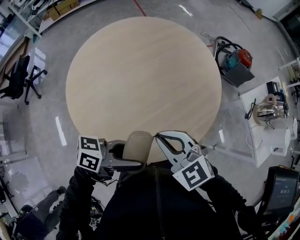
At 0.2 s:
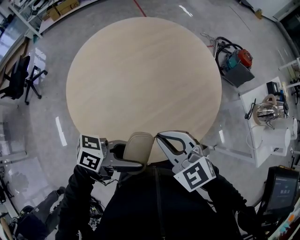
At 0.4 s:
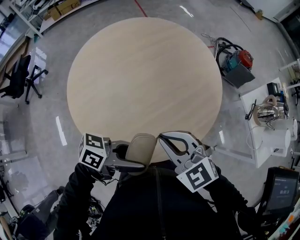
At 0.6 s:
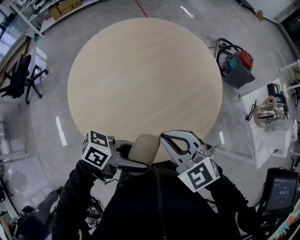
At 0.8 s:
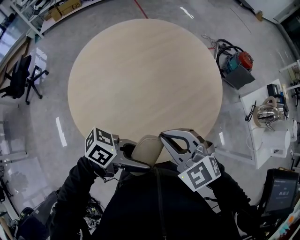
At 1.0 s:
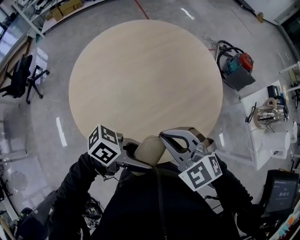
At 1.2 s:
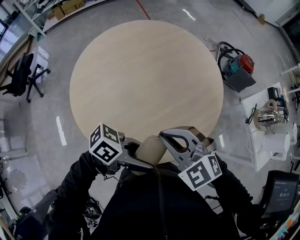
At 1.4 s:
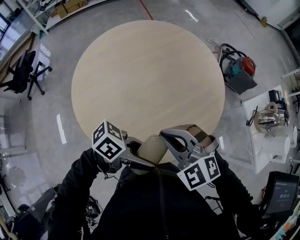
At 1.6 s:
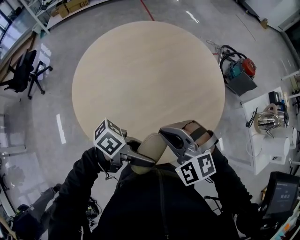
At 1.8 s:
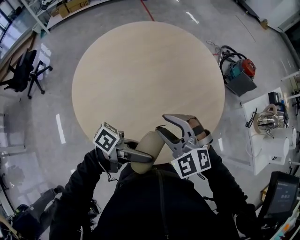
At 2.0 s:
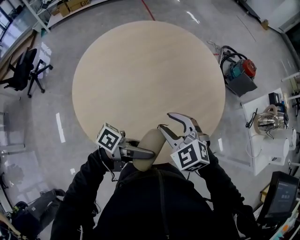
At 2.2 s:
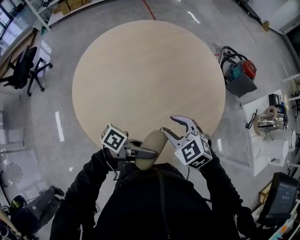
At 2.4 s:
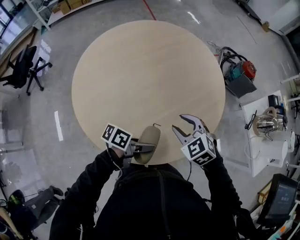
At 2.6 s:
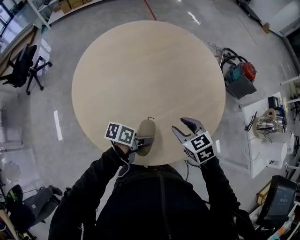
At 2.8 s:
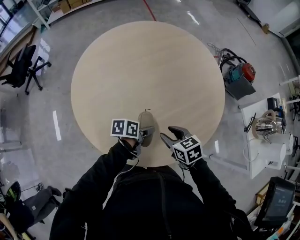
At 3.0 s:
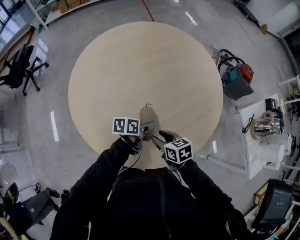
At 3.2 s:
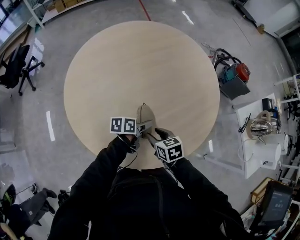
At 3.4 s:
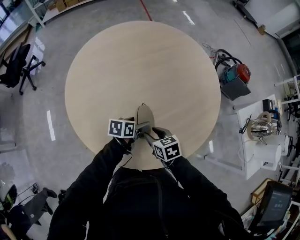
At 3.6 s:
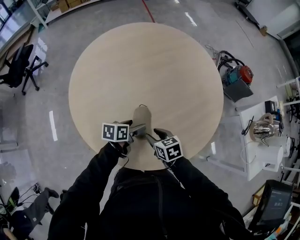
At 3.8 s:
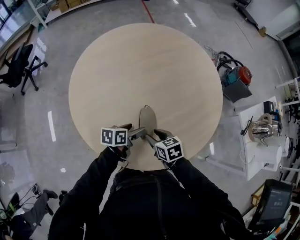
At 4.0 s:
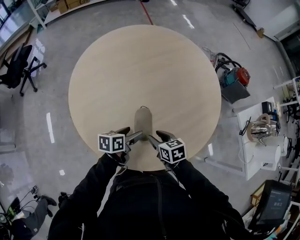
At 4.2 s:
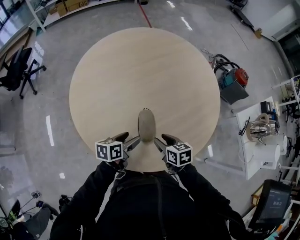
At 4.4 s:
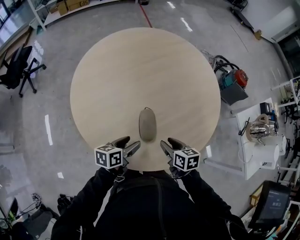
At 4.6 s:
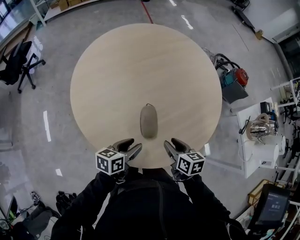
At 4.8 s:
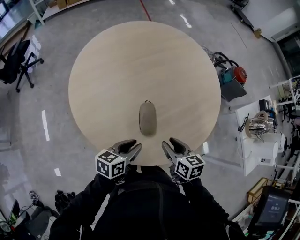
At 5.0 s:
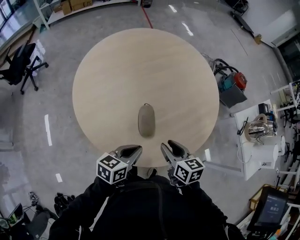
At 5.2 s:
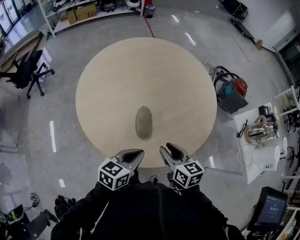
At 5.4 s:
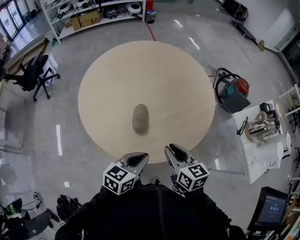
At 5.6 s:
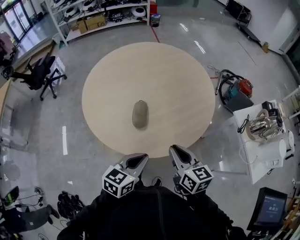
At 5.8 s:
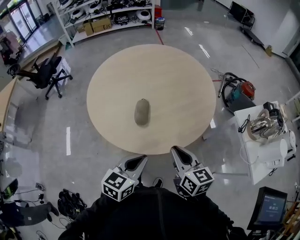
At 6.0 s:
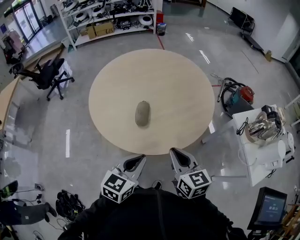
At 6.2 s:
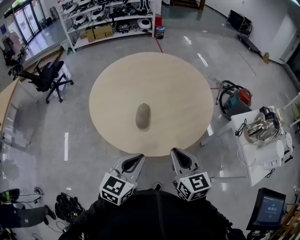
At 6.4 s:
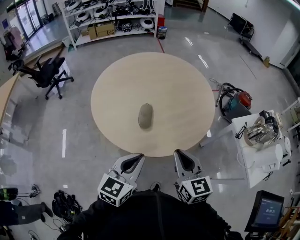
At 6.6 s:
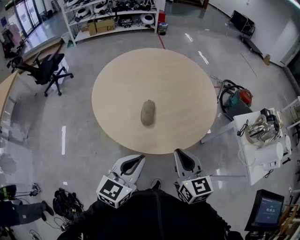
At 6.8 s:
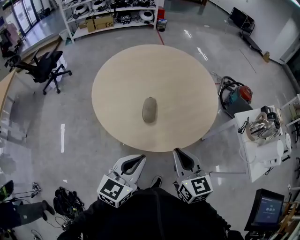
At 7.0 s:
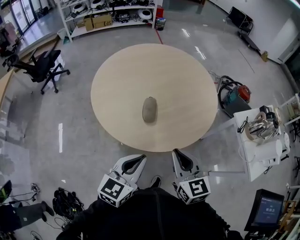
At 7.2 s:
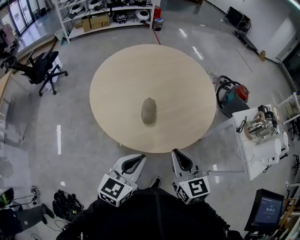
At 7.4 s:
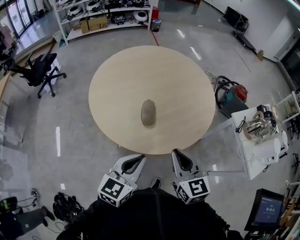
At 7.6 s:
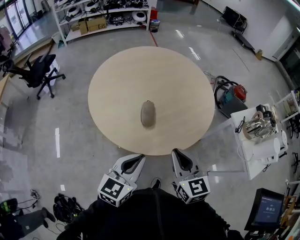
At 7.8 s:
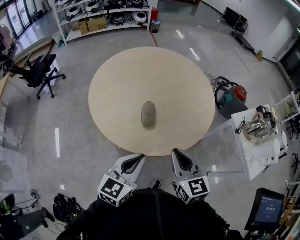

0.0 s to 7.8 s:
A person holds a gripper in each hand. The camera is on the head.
0.0 to 1.6 s: The right gripper turns by about 40 degrees.
1.6 to 3.2 s: Both grippers move downward, roughly 20 cm. The right gripper rolls clockwise, seen from behind, by some 80 degrees, and opens up. Meanwhile the left gripper turns by roughly 50 degrees.
3.2 to 4.6 s: The left gripper heads backward, to the left and upward, covering roughly 15 cm, while the right gripper ends up roughly 5 cm from where it was.
4.6 to 6.2 s: Both grippers travel together upward, backward and to the right, some 30 cm. The left gripper changes its angle by some 40 degrees, and closes up; the right gripper changes its angle by about 40 degrees, and closes up.
6.2 to 7.8 s: Both grippers travel together to the left, roughly 5 cm.

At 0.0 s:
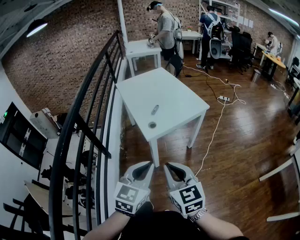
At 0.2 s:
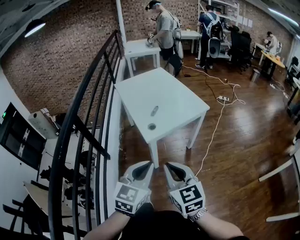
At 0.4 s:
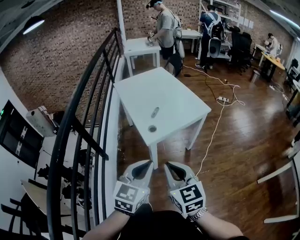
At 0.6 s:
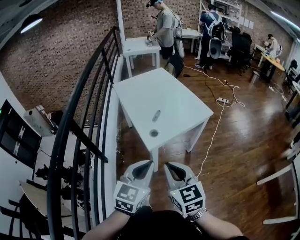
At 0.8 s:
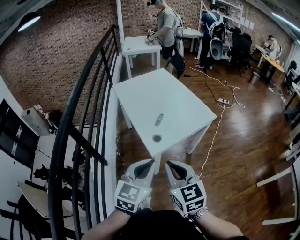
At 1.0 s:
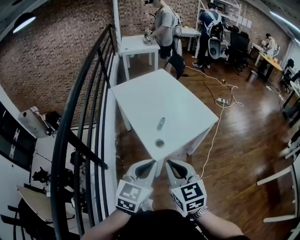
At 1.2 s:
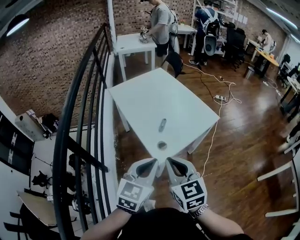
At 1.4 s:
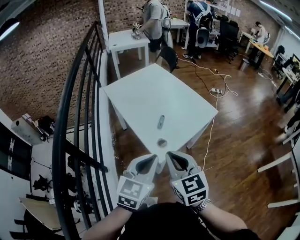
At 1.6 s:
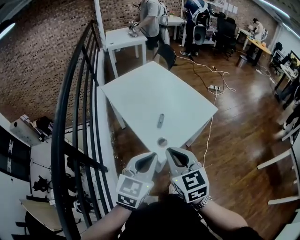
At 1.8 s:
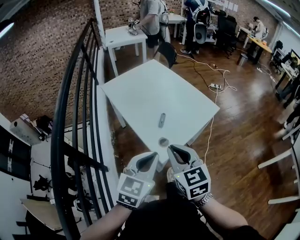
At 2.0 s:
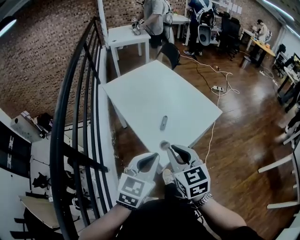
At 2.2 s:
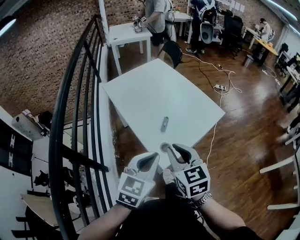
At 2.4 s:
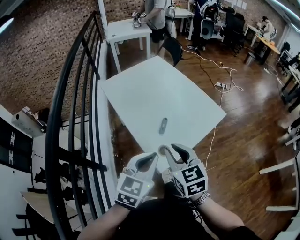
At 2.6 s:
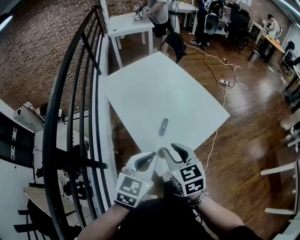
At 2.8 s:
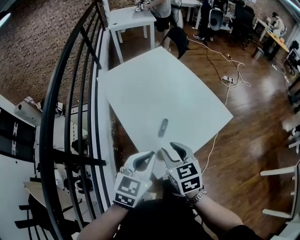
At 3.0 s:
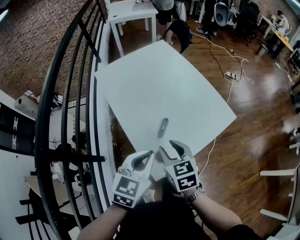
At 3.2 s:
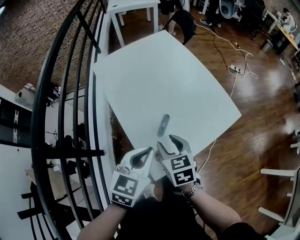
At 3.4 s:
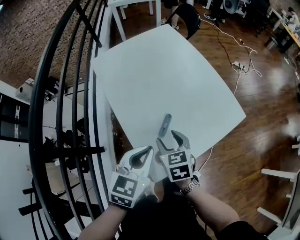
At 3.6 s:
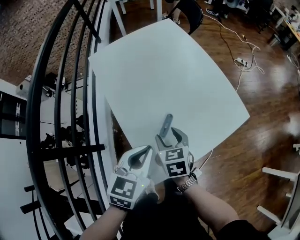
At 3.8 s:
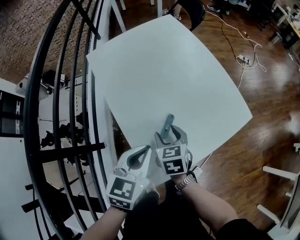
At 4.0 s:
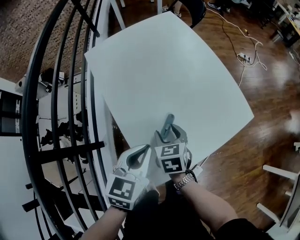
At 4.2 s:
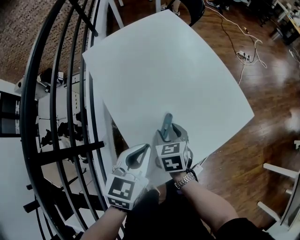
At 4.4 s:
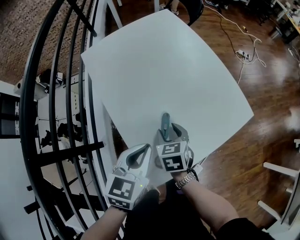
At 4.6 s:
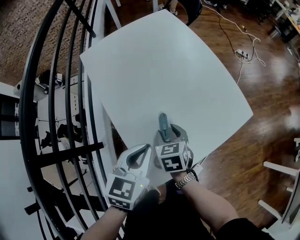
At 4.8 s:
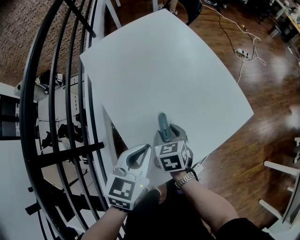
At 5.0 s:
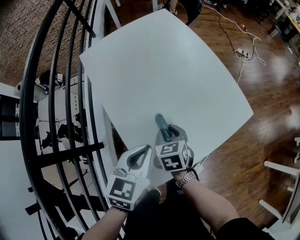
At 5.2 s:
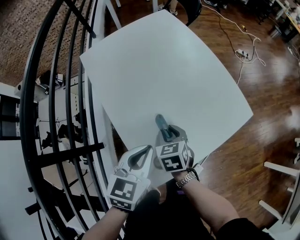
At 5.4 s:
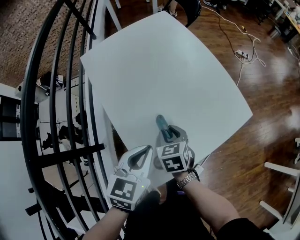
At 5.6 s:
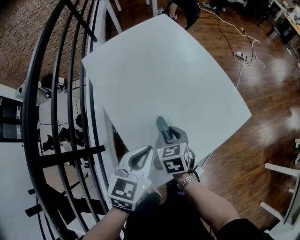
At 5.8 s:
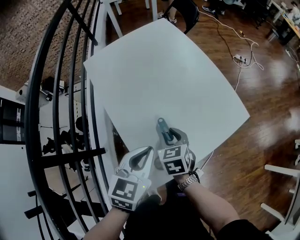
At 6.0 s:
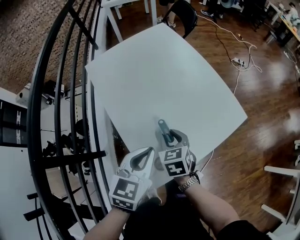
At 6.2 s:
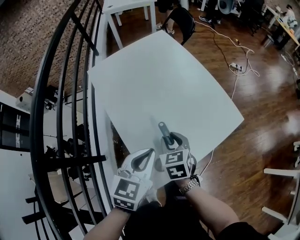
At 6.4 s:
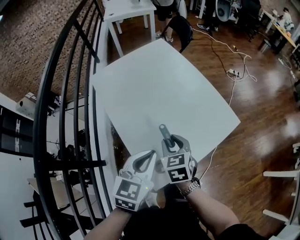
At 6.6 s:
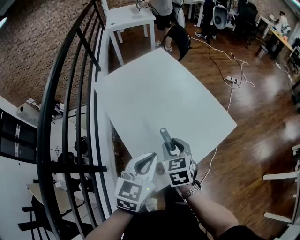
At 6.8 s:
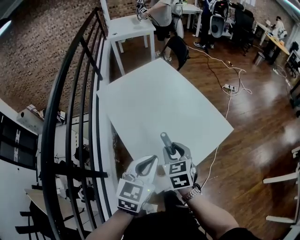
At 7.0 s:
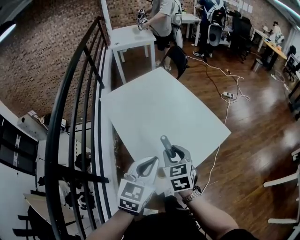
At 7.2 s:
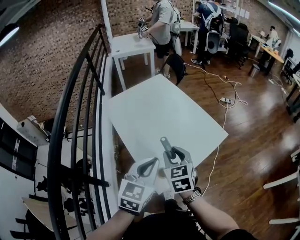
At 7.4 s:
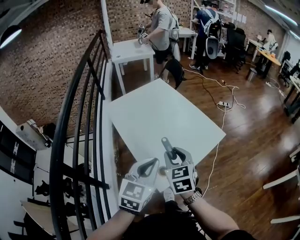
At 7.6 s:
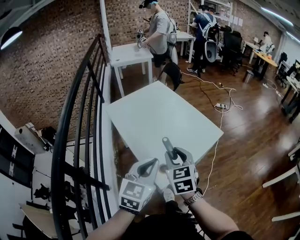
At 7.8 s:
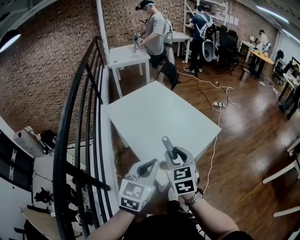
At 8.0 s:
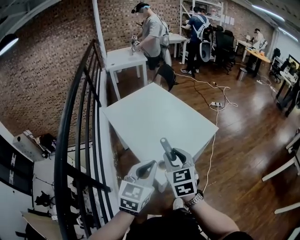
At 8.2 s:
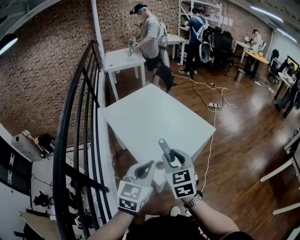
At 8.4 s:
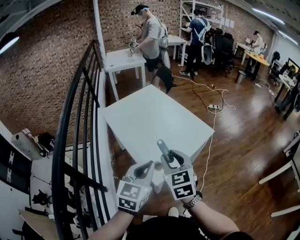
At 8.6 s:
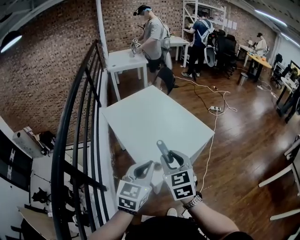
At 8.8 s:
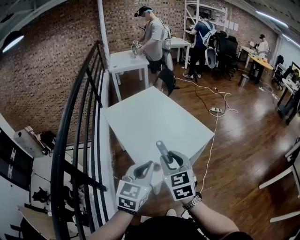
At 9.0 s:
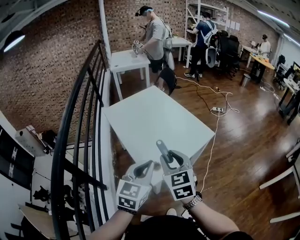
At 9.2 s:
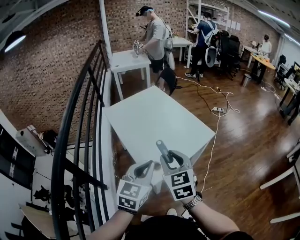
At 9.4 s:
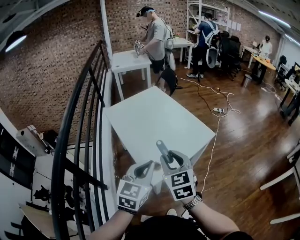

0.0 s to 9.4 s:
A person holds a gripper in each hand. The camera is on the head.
0.0 to 1.6 s: The grippers both shift forward and to the left by about 30 cm.
1.6 to 3.2 s: The two grippers go approximately 25 cm forward and downward. The right gripper rotates some 20 degrees, and opens its fingers.
3.2 to 4.8 s: The right gripper is displaced downward and forward by approximately 15 cm; the left gripper heads downward, covering about 5 cm.
4.8 to 6.2 s: The right gripper is displaced upward by approximately 5 cm.
6.2 to 7.8 s: The left gripper moves backward and upward, approximately 20 cm. Meanwhile the right gripper travels upward and backward by some 25 cm, and rotates roughly 20 degrees.
7.8 to 9.4 s: The right gripper ends up roughly 5 cm from where it was.

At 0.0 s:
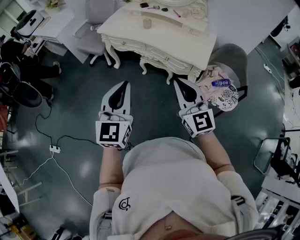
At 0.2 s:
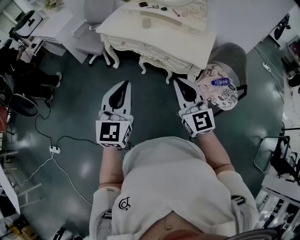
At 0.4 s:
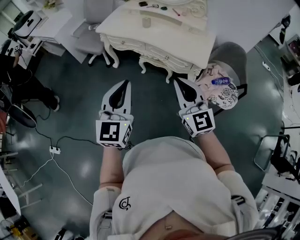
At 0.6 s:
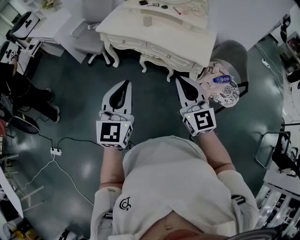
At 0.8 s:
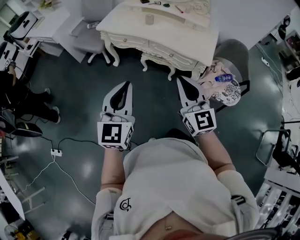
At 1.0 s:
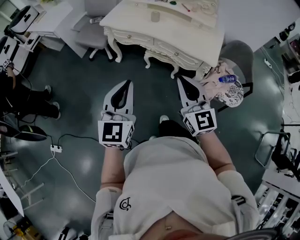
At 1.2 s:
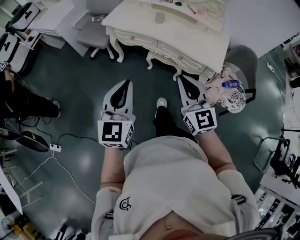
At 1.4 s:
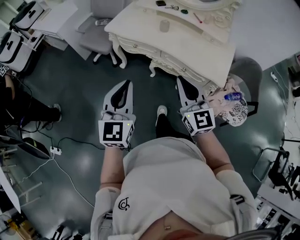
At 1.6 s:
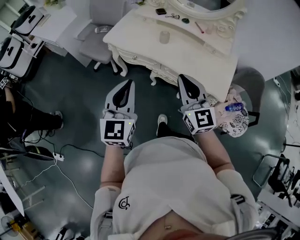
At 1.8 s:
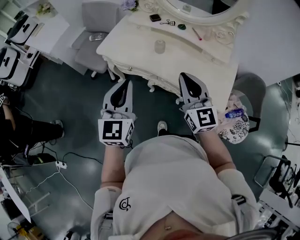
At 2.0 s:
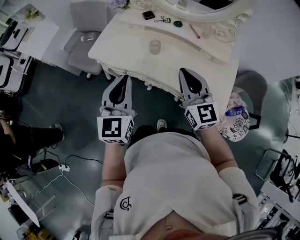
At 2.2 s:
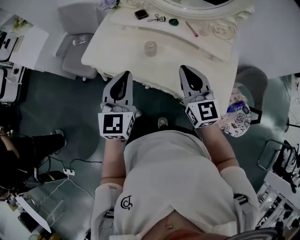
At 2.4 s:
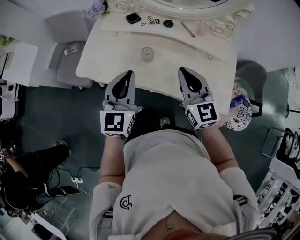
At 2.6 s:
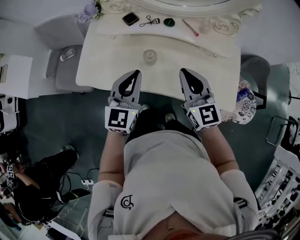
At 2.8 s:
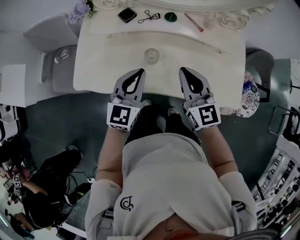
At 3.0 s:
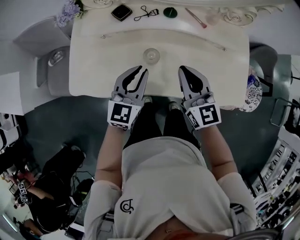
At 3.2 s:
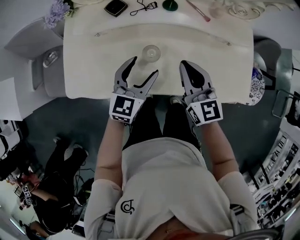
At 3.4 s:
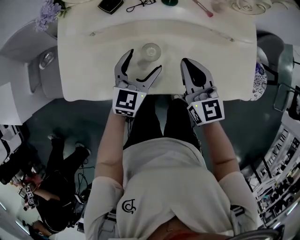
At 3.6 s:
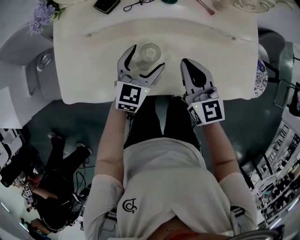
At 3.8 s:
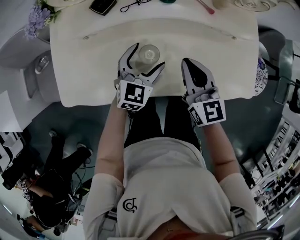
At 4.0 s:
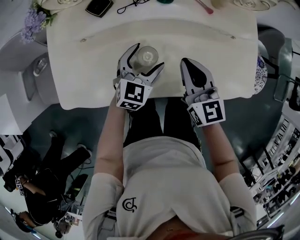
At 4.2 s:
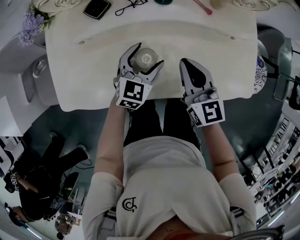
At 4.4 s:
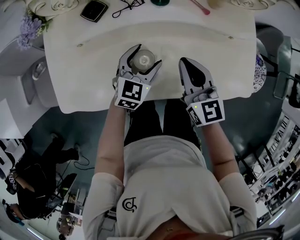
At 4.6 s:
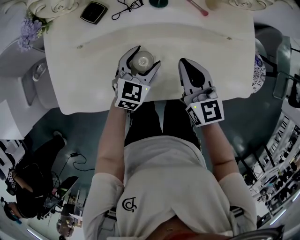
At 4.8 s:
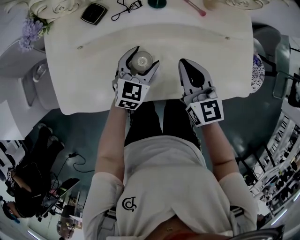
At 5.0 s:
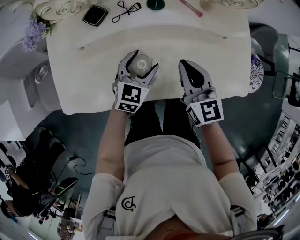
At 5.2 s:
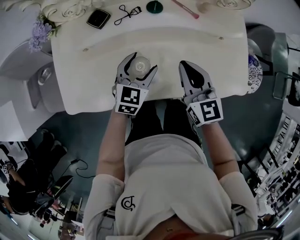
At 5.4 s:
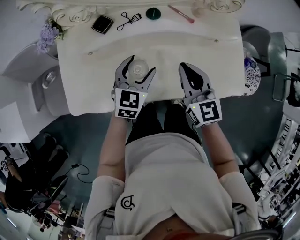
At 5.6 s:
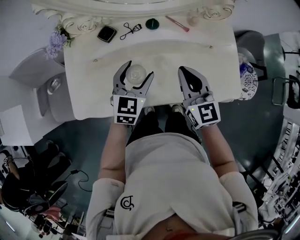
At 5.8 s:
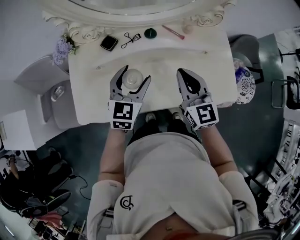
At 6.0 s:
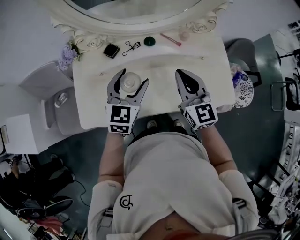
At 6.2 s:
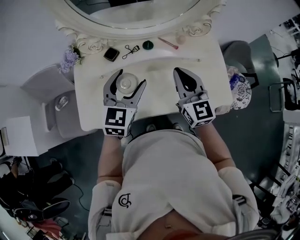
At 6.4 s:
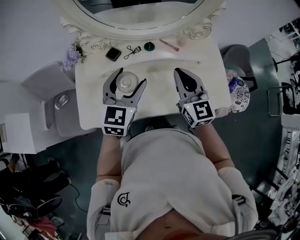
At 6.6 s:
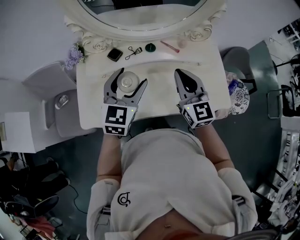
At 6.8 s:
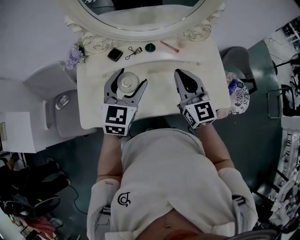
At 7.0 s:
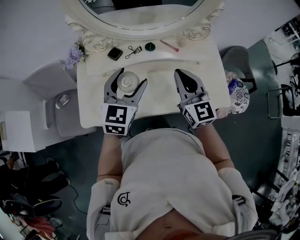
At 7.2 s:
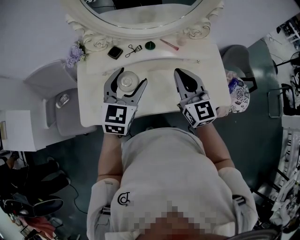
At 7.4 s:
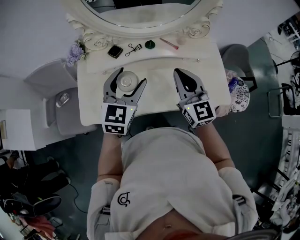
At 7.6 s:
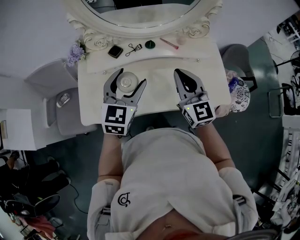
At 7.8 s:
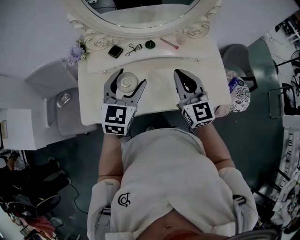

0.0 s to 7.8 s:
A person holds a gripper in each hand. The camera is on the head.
0.0 to 1.6 s: Both grippers move forward, roughly 25 cm.
1.6 to 3.2 s: The left gripper shifts by roughly 50 cm, rotates approximately 50 degrees, and opens its fingers. Meanwhile the right gripper shifts by roughly 40 cm, and swivels some 30 degrees.
3.2 to 4.6 s: The left gripper is displaced downward and forward by about 10 cm. Meanwhile the right gripper ends up about 5 cm from where it was.
4.6 to 6.2 s: The right gripper shifts roughly 15 cm upward. Meanwhile the left gripper heads upward, covering some 25 cm.
6.2 to 7.8 s: There are only small adjustments of the grippers.
